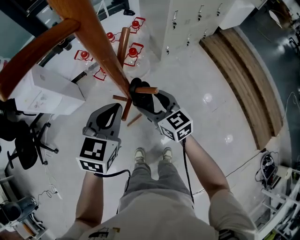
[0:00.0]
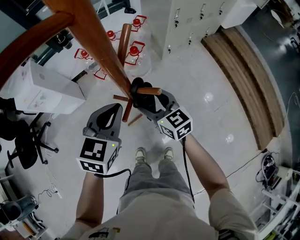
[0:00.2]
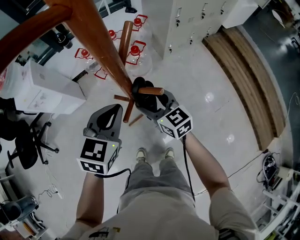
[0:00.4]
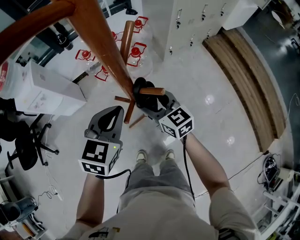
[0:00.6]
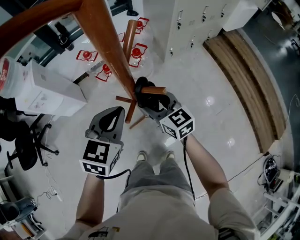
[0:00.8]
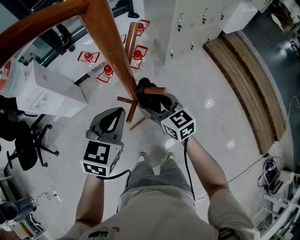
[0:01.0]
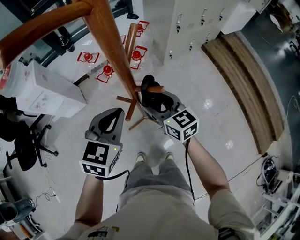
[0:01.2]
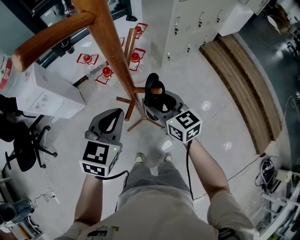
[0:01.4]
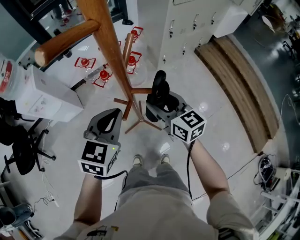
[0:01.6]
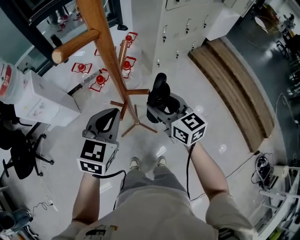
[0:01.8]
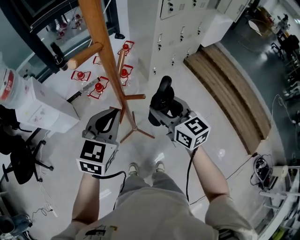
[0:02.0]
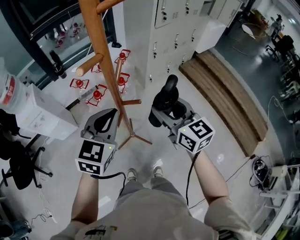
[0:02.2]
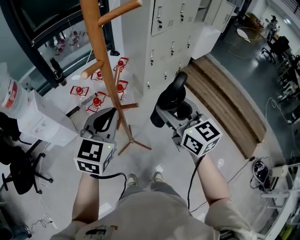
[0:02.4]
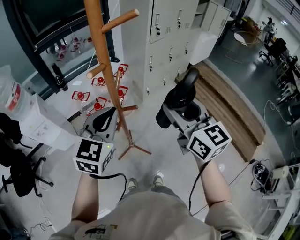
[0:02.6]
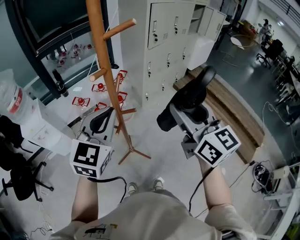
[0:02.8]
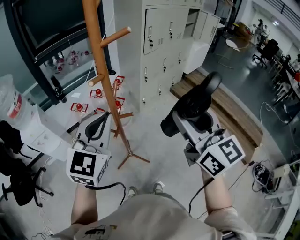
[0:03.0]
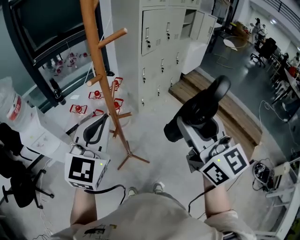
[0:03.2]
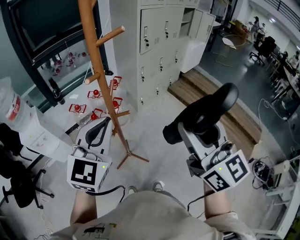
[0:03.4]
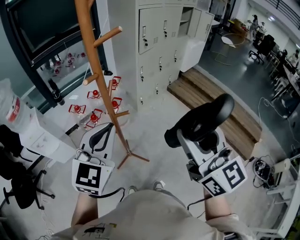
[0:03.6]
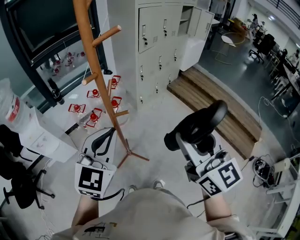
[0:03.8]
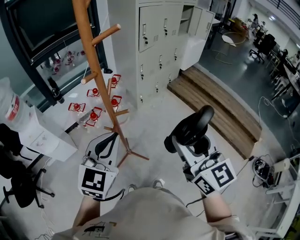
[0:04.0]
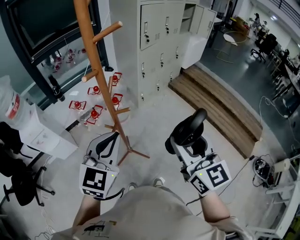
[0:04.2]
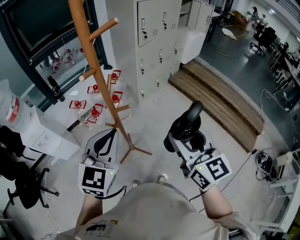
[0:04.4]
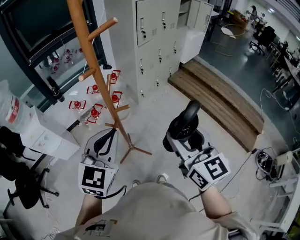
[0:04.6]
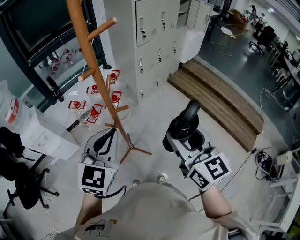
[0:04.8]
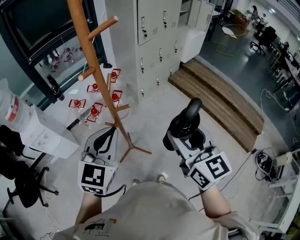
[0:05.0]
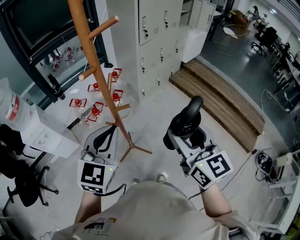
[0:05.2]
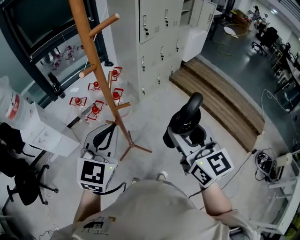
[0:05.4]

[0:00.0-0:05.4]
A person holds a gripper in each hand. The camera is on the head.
0:00.0 to 0:01.4: The grippers move only a little.
0:01.4 to 0:02.8: The right gripper heads upward and backward, covering some 40 cm, and turns by roughly 30 degrees; the left gripper shifts some 25 cm upward, and changes its angle by about 20 degrees.
0:02.8 to 0:04.0: Both grippers move backward, approximately 10 cm.
0:04.0 to 0:05.4: There are only small adjustments of the grippers.

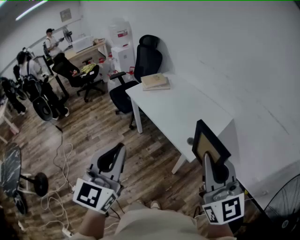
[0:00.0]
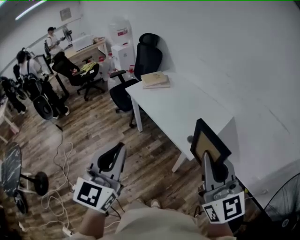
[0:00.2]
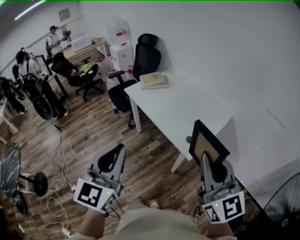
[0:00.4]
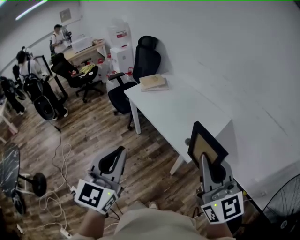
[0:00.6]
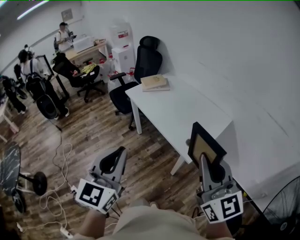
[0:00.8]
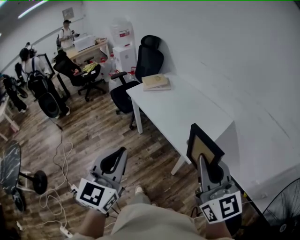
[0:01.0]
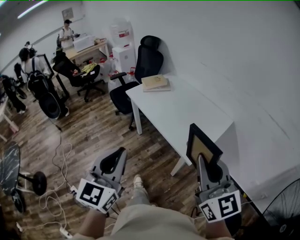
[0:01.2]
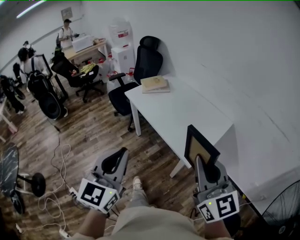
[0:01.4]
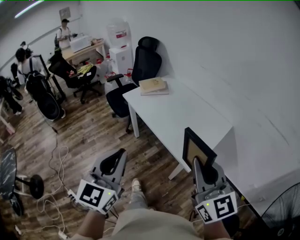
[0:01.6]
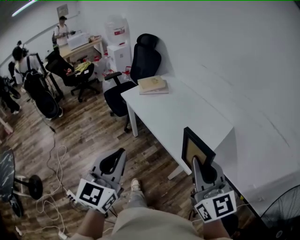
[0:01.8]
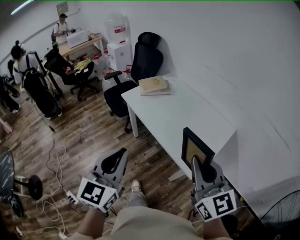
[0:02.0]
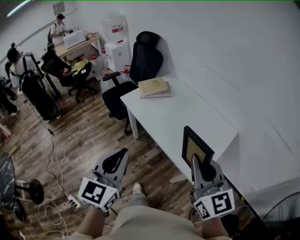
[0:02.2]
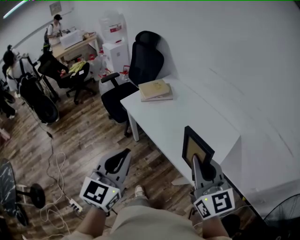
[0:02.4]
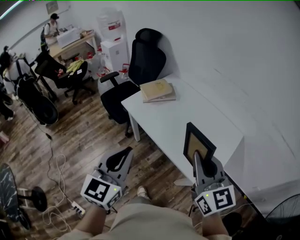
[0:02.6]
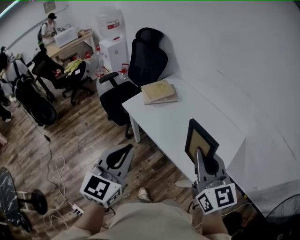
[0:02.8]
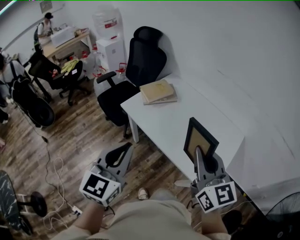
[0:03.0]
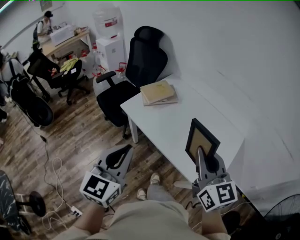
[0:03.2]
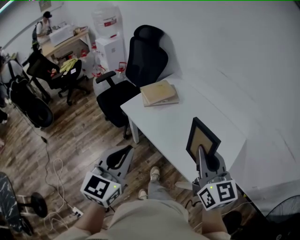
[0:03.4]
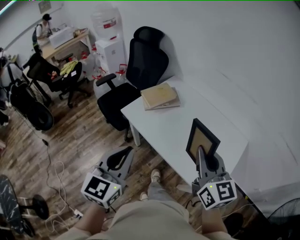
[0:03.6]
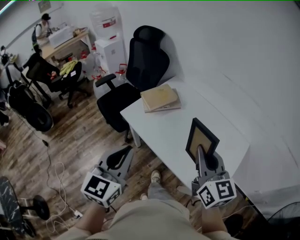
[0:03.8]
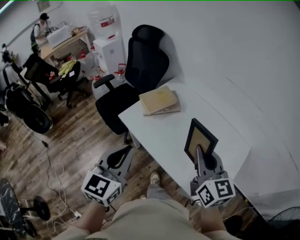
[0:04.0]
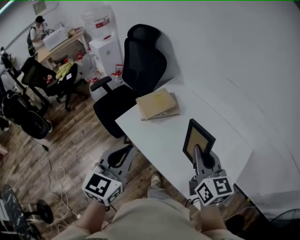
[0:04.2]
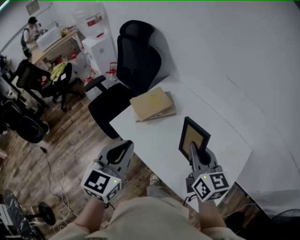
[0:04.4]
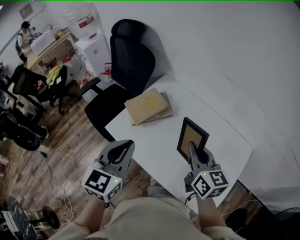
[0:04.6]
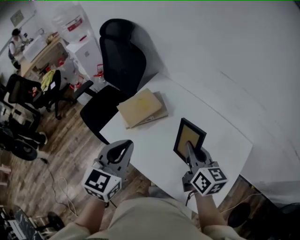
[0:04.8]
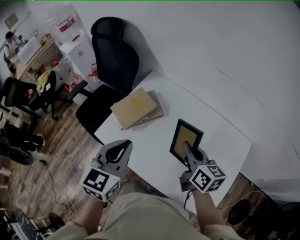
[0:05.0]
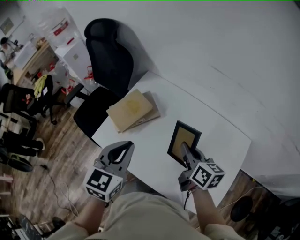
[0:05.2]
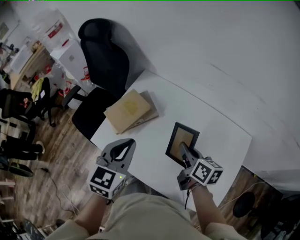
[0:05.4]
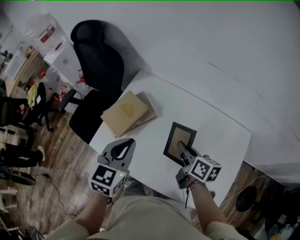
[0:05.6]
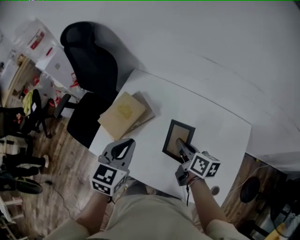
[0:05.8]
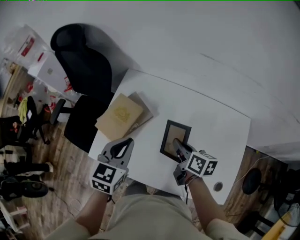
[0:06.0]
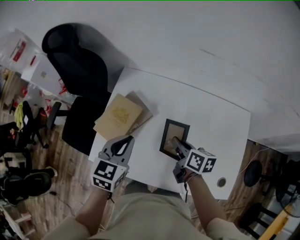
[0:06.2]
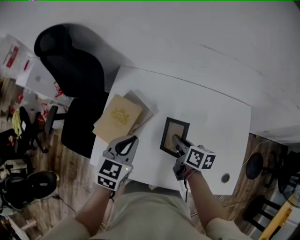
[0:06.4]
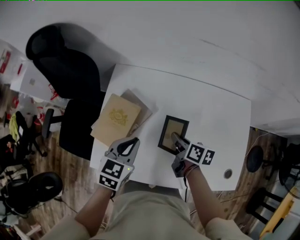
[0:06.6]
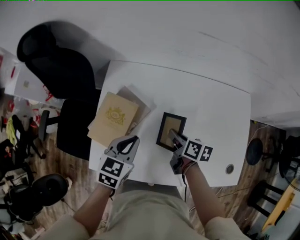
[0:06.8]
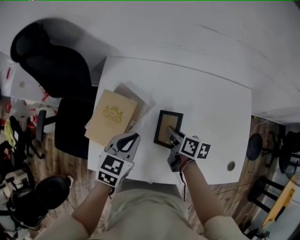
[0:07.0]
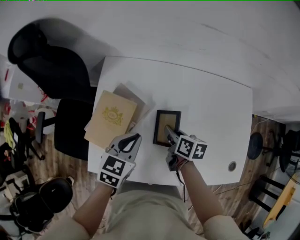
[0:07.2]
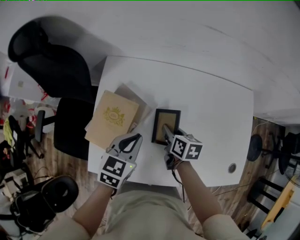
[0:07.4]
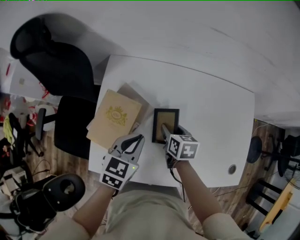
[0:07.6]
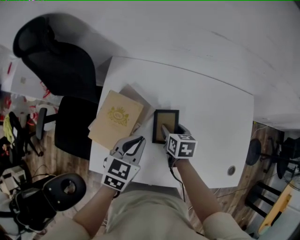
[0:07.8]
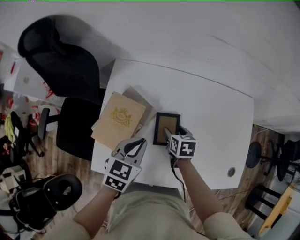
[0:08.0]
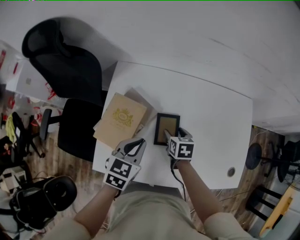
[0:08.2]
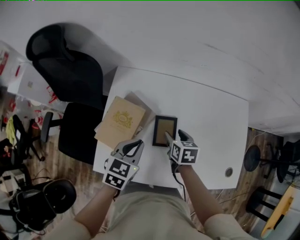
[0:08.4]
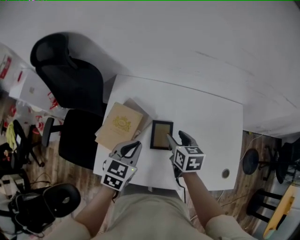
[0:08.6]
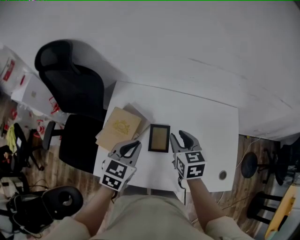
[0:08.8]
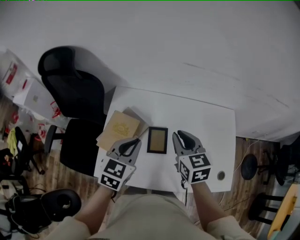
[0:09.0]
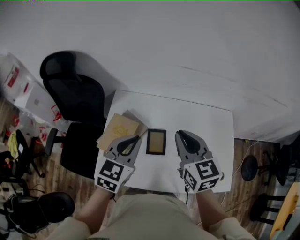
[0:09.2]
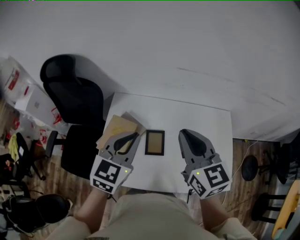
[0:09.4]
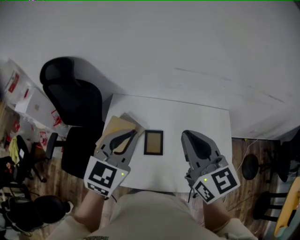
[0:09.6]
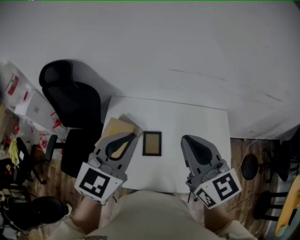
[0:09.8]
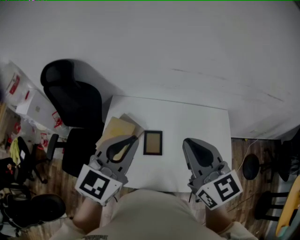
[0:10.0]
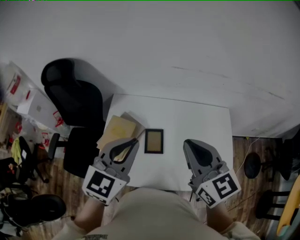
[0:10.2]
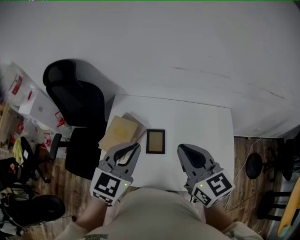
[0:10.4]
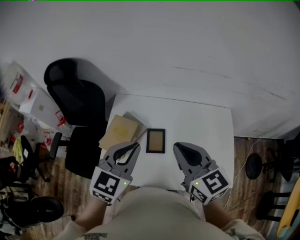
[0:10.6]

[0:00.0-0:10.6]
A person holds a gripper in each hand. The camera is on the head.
0:00.0 to 0:01.6: Both grippers travel together forward, roughly 5 cm.
0:01.6 to 0:03.0: The two grippers go about 30 cm forward and to the left.
0:03.0 to 0:04.6: The right gripper travels forward and downward by approximately 30 cm, and swivels roughly 20 degrees; the left gripper is displaced forward by roughly 30 cm.
0:04.6 to 0:06.0: The right gripper goes approximately 20 cm downward and forward, and turns by some 40 degrees, while the left gripper moves forward and downward, about 20 cm, and changes its angle by approximately 30 degrees.
0:06.0 to 0:07.6: The left gripper moves downward, some 10 cm, and rotates some 20 degrees, while the right gripper goes some 15 cm downward and to the left, changes its angle by some 30 degrees, and opens up.
0:07.6 to 0:09.0: The left gripper is displaced upward by roughly 15 cm, while the right gripper travels upward by approximately 25 cm, turns by some 30 degrees, and closes.
0:09.0 to 0:10.6: Both grippers travel together upward and backward, roughly 15 cm.

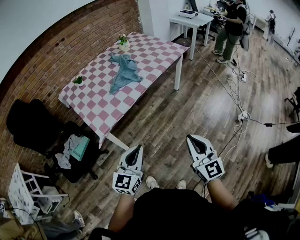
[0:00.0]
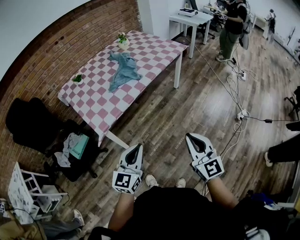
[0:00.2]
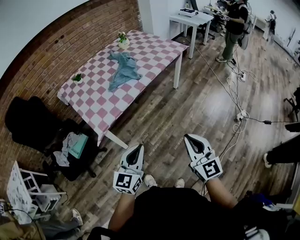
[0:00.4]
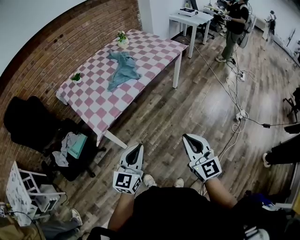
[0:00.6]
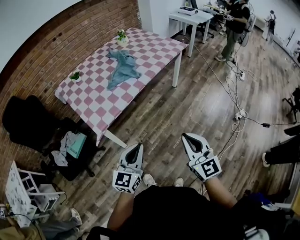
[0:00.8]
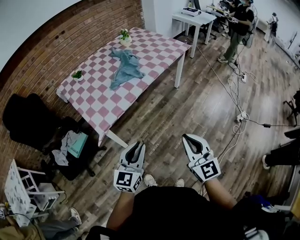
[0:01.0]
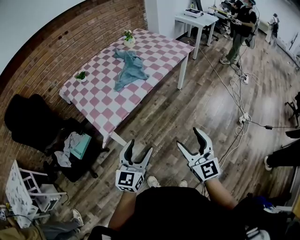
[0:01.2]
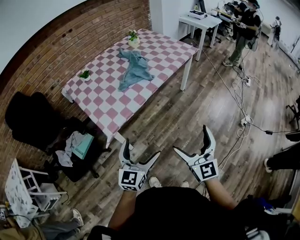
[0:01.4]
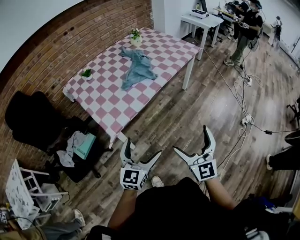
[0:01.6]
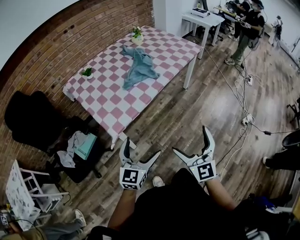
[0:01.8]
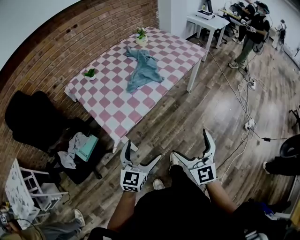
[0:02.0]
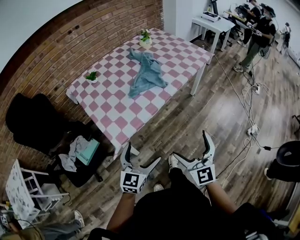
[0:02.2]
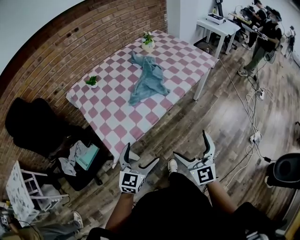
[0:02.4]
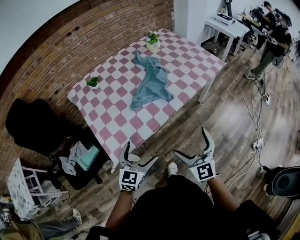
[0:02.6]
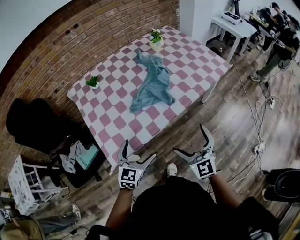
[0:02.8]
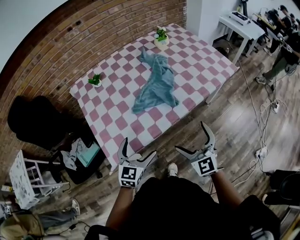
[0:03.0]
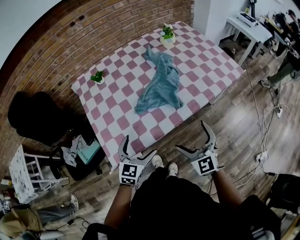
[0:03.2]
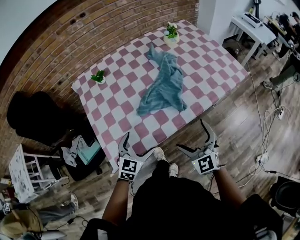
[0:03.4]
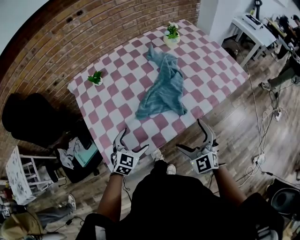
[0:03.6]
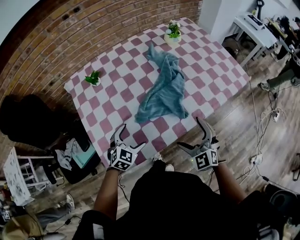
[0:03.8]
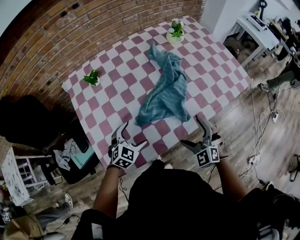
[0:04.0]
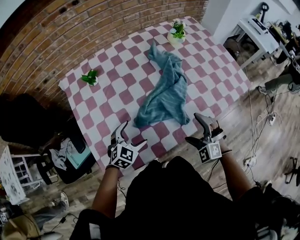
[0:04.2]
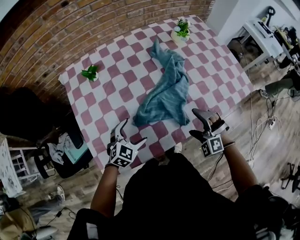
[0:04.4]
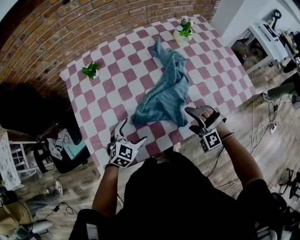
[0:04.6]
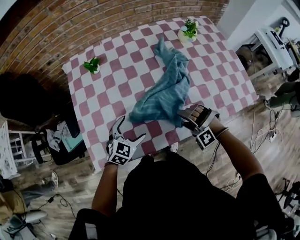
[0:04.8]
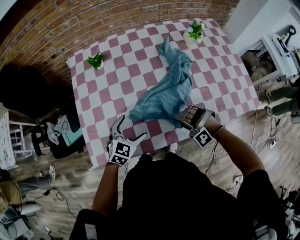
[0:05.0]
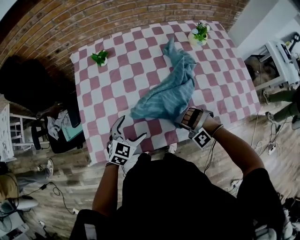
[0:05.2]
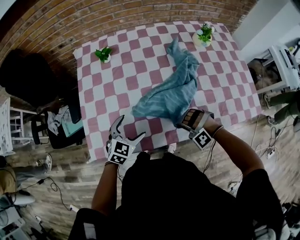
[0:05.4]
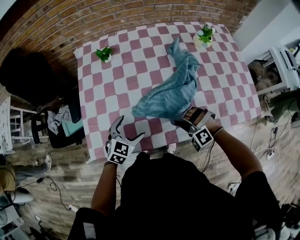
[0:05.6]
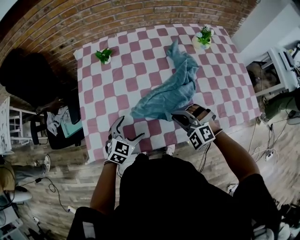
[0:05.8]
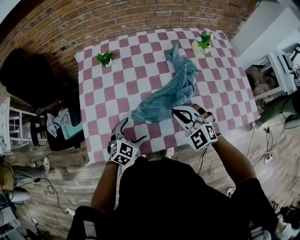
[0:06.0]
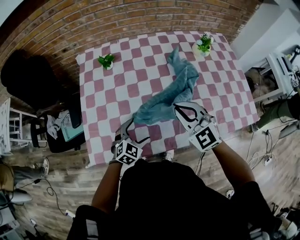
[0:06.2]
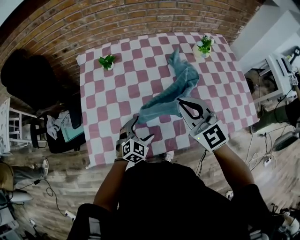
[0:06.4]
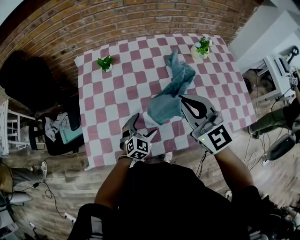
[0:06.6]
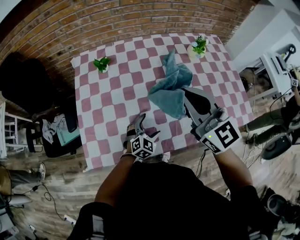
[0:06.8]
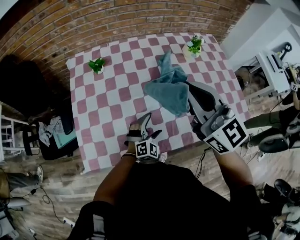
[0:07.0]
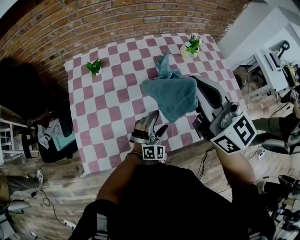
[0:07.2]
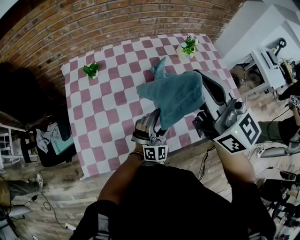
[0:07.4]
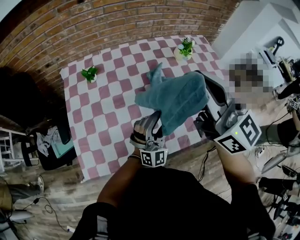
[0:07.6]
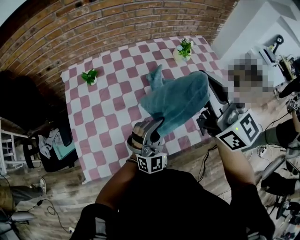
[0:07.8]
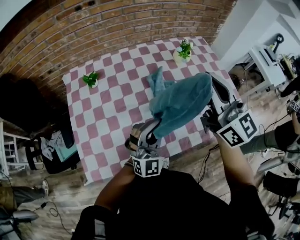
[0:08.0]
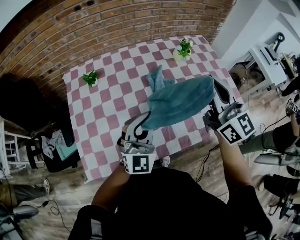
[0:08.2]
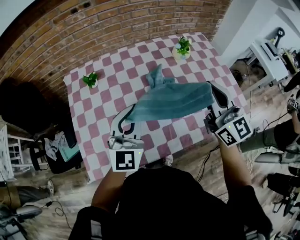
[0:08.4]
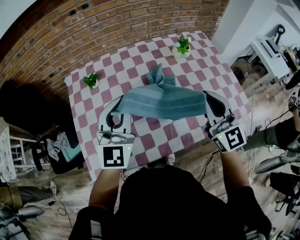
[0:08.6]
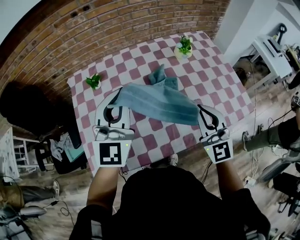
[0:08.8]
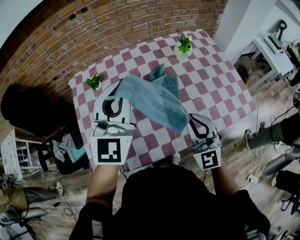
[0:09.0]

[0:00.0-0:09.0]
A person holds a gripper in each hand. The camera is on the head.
0:00.0 to 0:01.6: Both grippers travel together to the left and forward, some 10 cm. The left gripper opens up; the right gripper opens up.
0:01.6 to 0:03.0: Both grippers travel together forward, approximately 30 cm. The right gripper turns by approximately 30 degrees.
0:03.0 to 0:04.4: The two grippers go roughly 25 cm forward and downward. The right gripper twists approximately 50 degrees counterclockwise, seen from behind; the left gripper rotates some 20 degrees.
0:04.4 to 0:06.0: The right gripper is displaced upward by approximately 10 cm, changes its angle by some 30 degrees, and closes its fingers.
0:06.0 to 0:07.6: The right gripper goes approximately 30 cm upward, and angles its fingers upward, by approximately 40 degrees. Meanwhile the left gripper heads to the right and upward, covering roughly 20 cm, and tilts its fingers approximately 40 degrees upward.
0:07.6 to 0:09.0: The right gripper moves downward, approximately 20 cm, and turns by roughly 40 degrees. Meanwhile the left gripper goes roughly 25 cm upward and to the left, rotates approximately 30 degrees, and closes its fingers.
